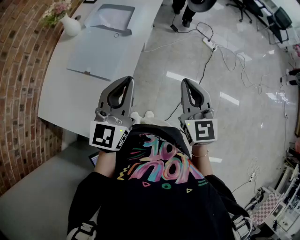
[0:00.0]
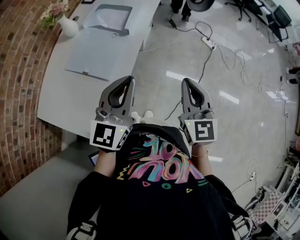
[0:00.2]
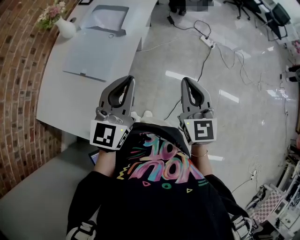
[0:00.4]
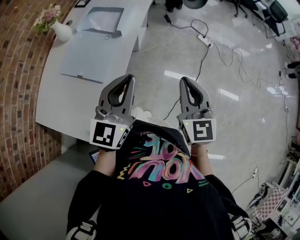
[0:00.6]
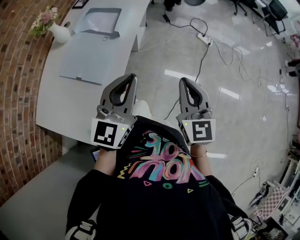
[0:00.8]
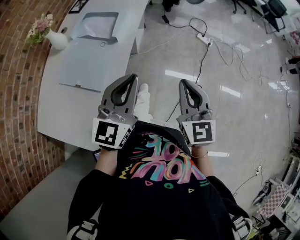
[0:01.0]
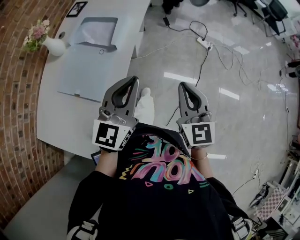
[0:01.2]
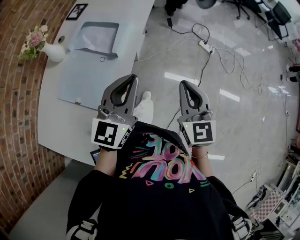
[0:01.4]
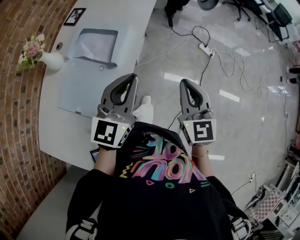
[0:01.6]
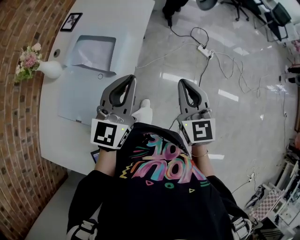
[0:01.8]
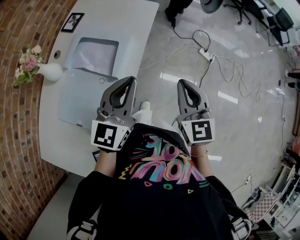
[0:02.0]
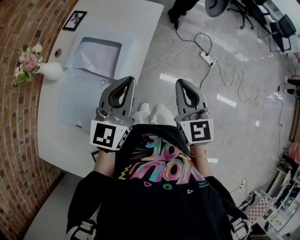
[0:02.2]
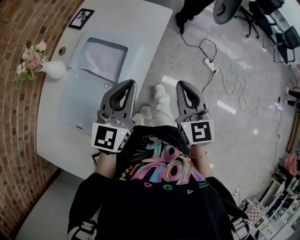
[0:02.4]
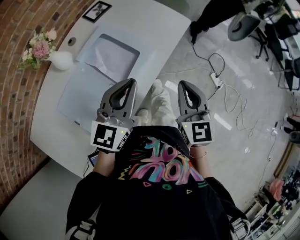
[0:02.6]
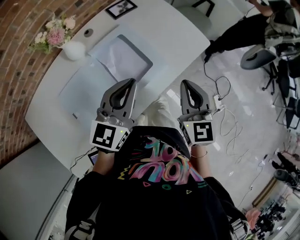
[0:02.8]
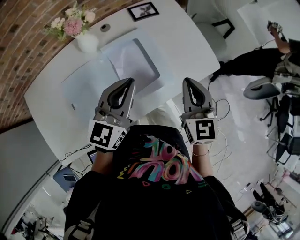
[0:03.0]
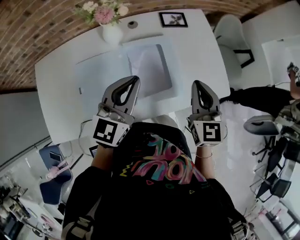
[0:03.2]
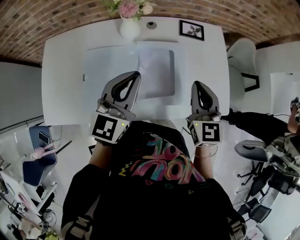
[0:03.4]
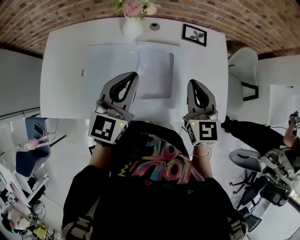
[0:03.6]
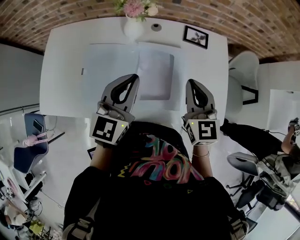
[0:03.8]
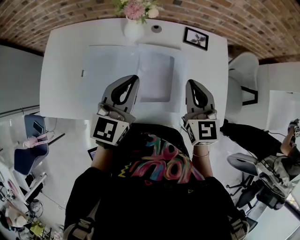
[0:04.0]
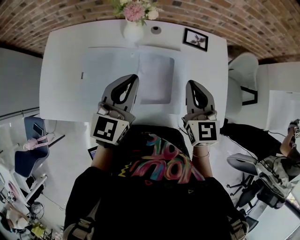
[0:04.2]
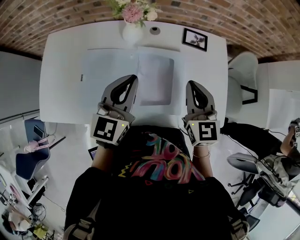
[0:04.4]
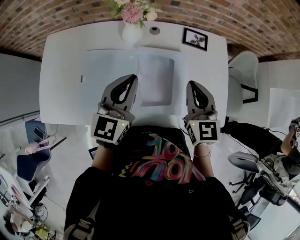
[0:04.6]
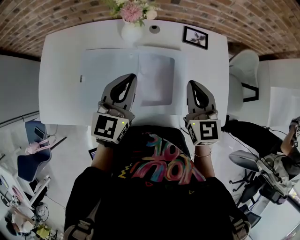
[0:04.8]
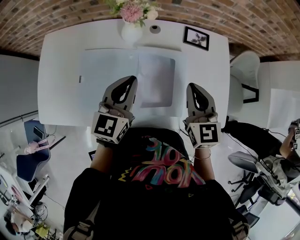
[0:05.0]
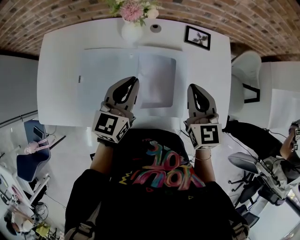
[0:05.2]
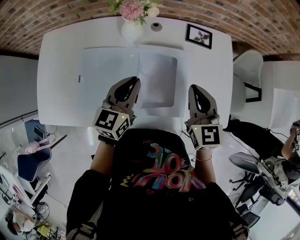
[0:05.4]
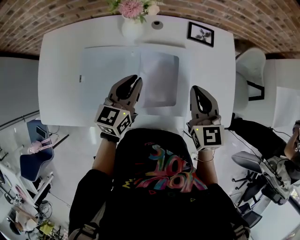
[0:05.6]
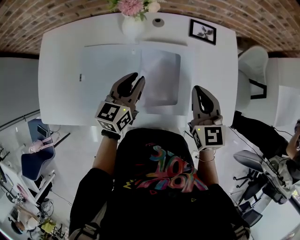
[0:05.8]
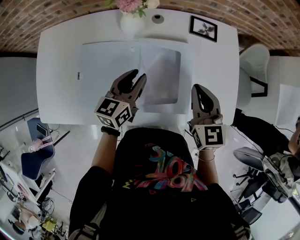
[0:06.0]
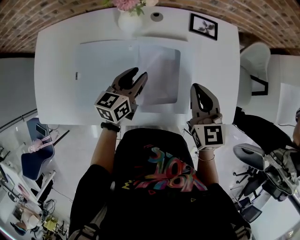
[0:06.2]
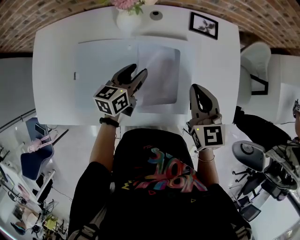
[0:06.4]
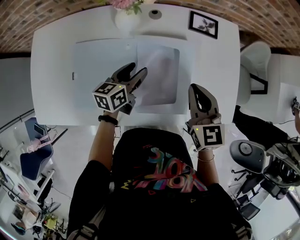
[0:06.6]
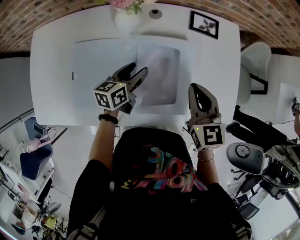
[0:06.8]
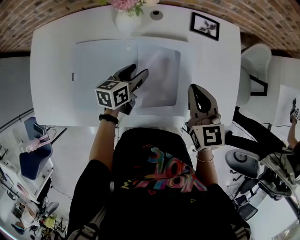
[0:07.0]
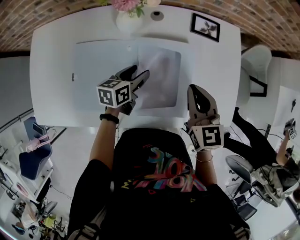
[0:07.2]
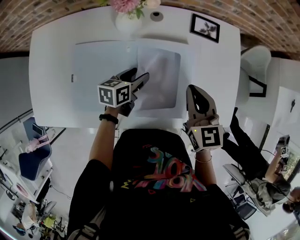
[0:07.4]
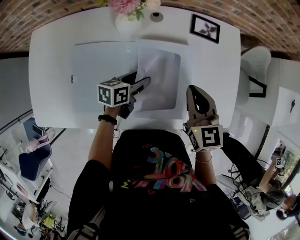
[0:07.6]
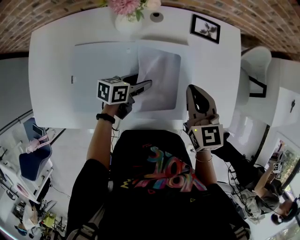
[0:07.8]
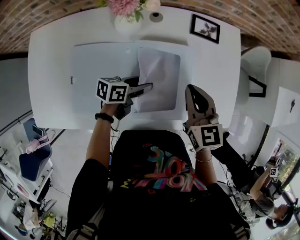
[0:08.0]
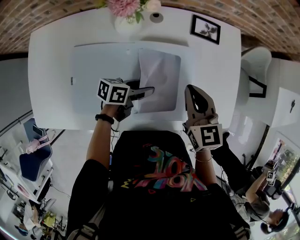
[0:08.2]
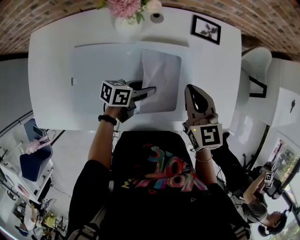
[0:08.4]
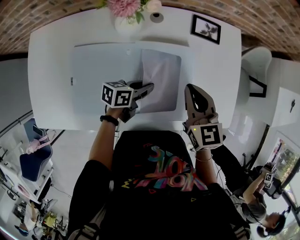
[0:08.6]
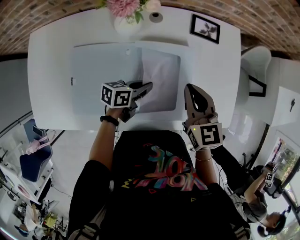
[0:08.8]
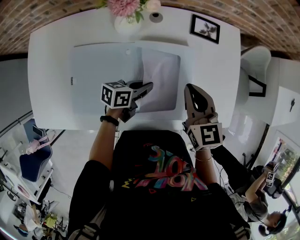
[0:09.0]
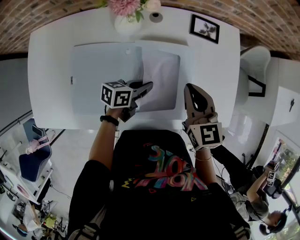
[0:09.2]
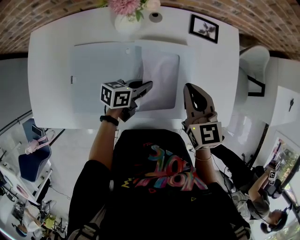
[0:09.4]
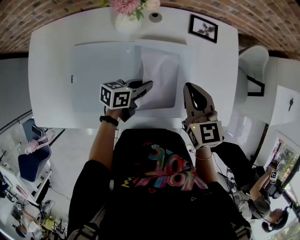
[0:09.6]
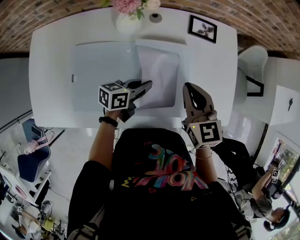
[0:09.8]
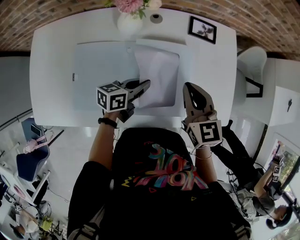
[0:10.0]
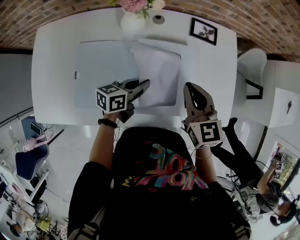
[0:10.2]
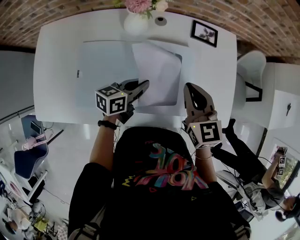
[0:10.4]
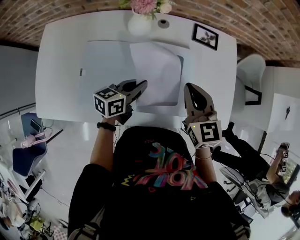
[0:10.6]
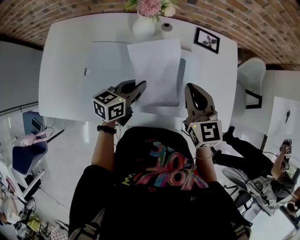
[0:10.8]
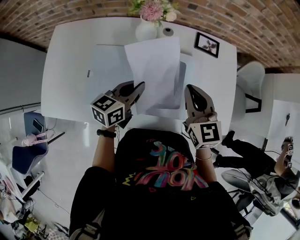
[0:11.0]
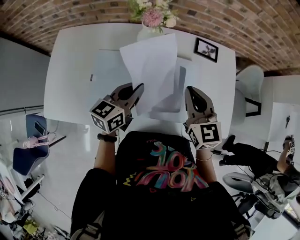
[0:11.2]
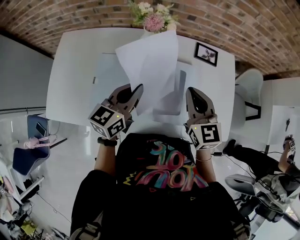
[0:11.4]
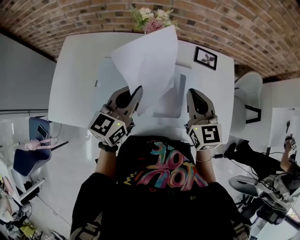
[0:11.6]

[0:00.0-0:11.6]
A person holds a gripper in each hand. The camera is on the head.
0:00.0 to 0:01.4: The grippers both shift forward by about 20 cm.
0:01.4 to 0:02.8: The right gripper ends up approximately 35 cm from where it was, and turns by approximately 30 degrees. The left gripper moves approximately 30 cm, and turns by some 30 degrees.
0:02.8 to 0:04.4: The right gripper shifts by roughly 20 cm, and rotates some 50 degrees; the left gripper moves approximately 10 cm, and changes its angle by roughly 50 degrees.
0:04.4 to 0:05.8: The right gripper is displaced downward by some 5 cm; the left gripper travels downward by roughly 15 cm, and turns by roughly 20 degrees.
0:05.8 to 0:07.2: The left gripper travels downward by approximately 10 cm, turns by about 30 degrees, and opens up.
0:07.2 to 0:08.8: The left gripper moves to the right, approximately 5 cm, turns by about 20 degrees, and closes up.
0:08.8 to 0:10.2: The left gripper travels upward by roughly 5 cm.
0:10.2 to 0:11.6: The right gripper travels upward by roughly 10 cm; the left gripper heads upward, covering some 20 cm, and rotates about 40 degrees.

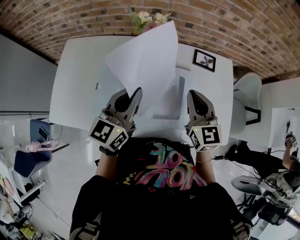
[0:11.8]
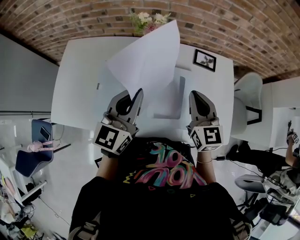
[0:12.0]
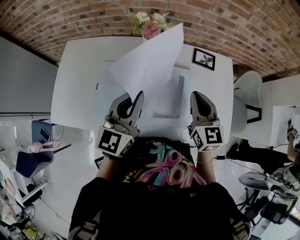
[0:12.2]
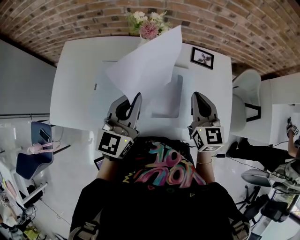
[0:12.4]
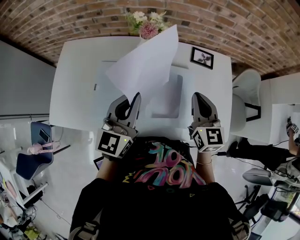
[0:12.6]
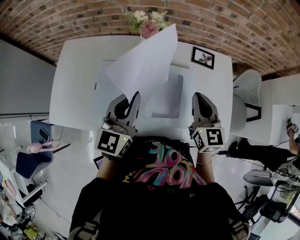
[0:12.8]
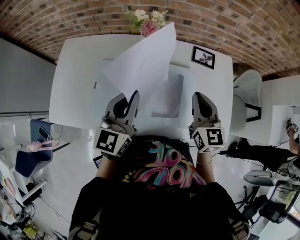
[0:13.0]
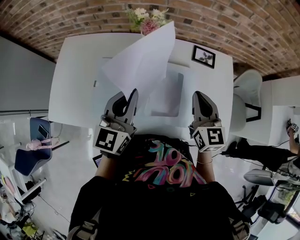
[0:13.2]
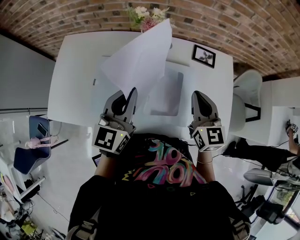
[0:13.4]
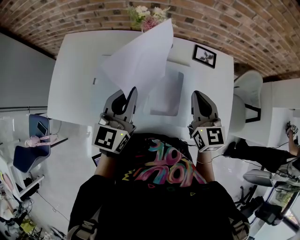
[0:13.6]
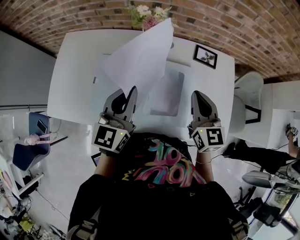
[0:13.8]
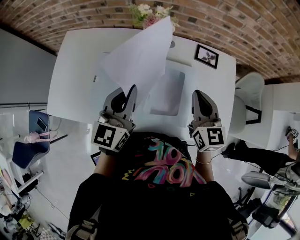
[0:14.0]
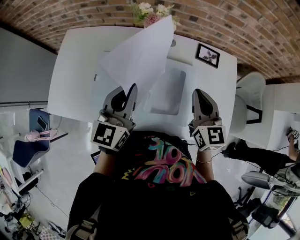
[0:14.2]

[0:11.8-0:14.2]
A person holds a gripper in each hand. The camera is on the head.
0:11.8 to 0:14.2: There are only small adjustments of the grippers.

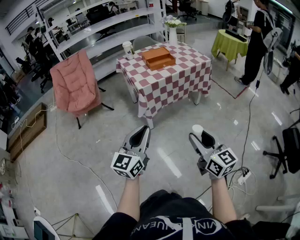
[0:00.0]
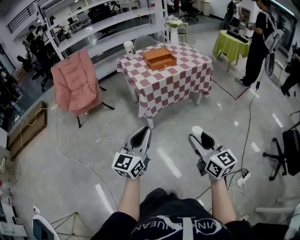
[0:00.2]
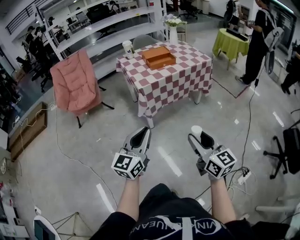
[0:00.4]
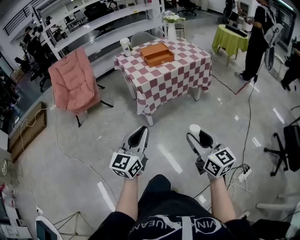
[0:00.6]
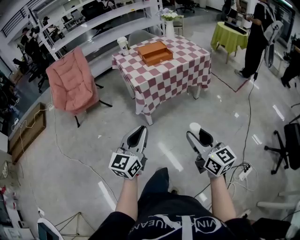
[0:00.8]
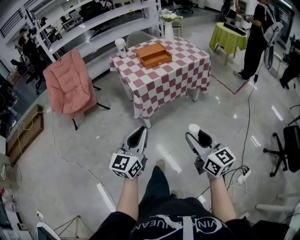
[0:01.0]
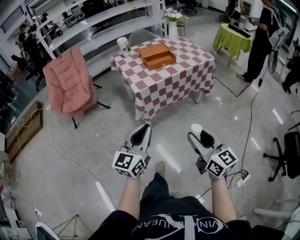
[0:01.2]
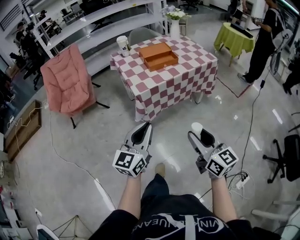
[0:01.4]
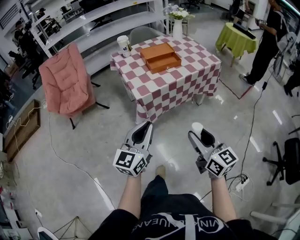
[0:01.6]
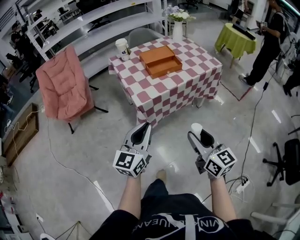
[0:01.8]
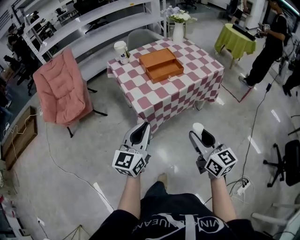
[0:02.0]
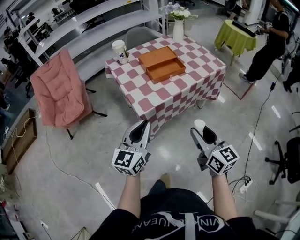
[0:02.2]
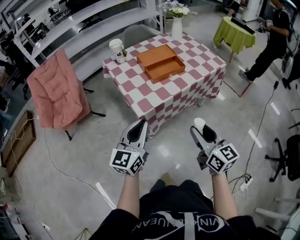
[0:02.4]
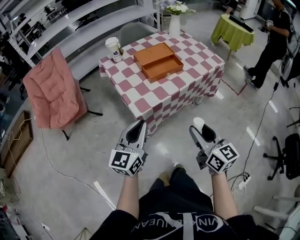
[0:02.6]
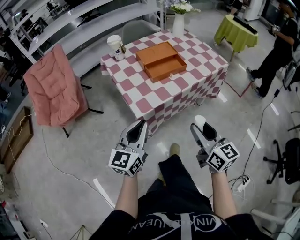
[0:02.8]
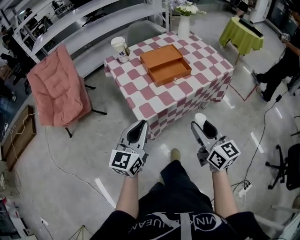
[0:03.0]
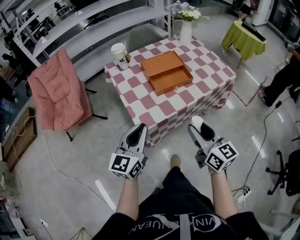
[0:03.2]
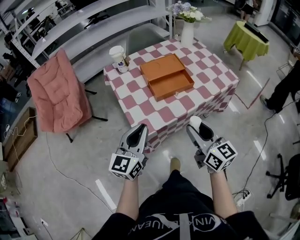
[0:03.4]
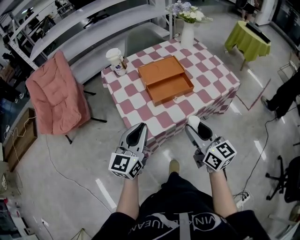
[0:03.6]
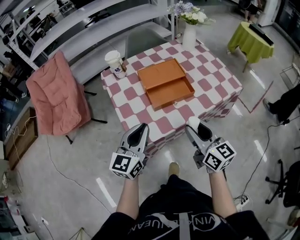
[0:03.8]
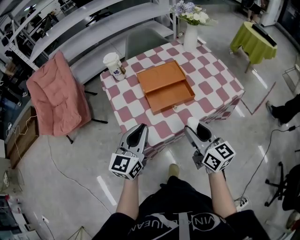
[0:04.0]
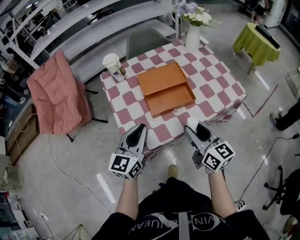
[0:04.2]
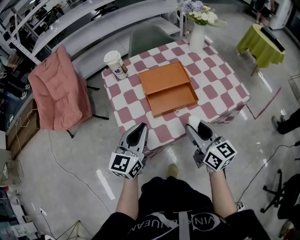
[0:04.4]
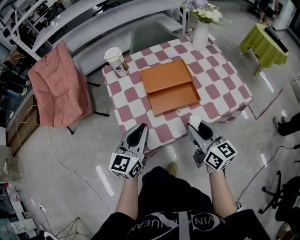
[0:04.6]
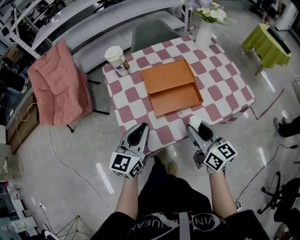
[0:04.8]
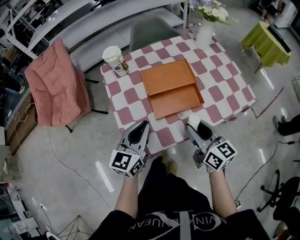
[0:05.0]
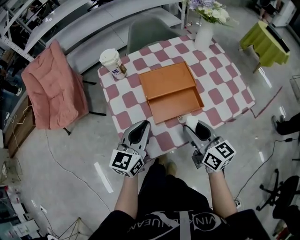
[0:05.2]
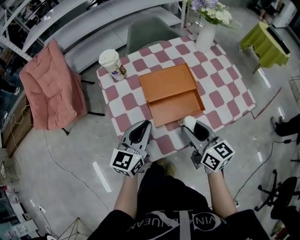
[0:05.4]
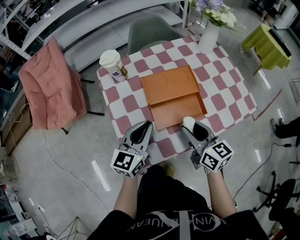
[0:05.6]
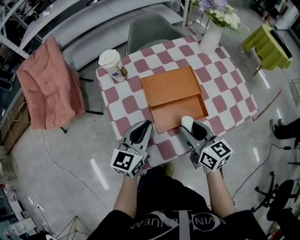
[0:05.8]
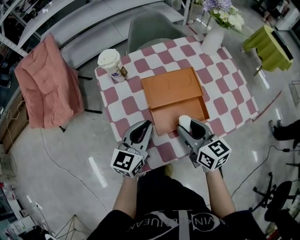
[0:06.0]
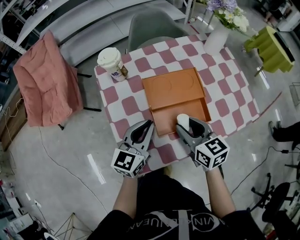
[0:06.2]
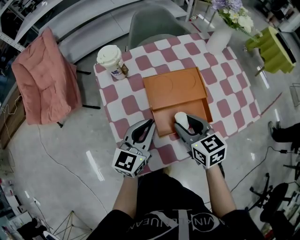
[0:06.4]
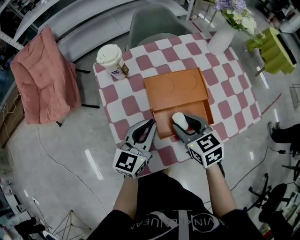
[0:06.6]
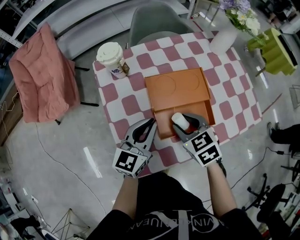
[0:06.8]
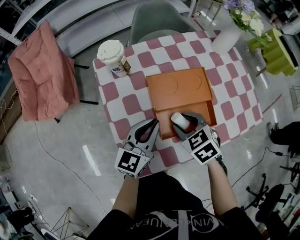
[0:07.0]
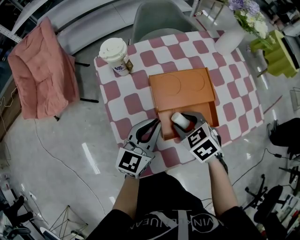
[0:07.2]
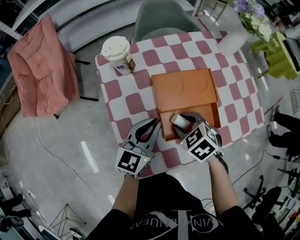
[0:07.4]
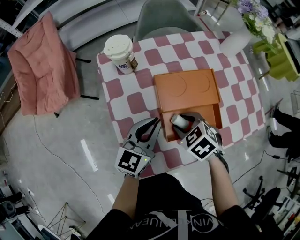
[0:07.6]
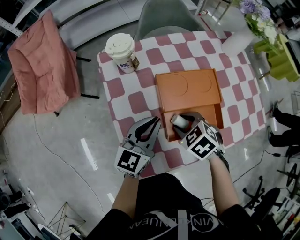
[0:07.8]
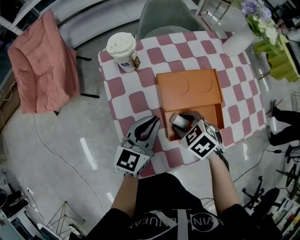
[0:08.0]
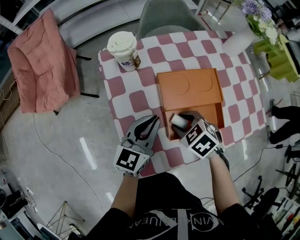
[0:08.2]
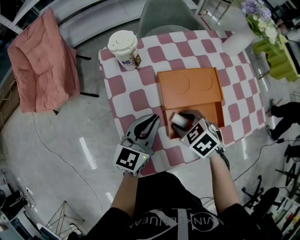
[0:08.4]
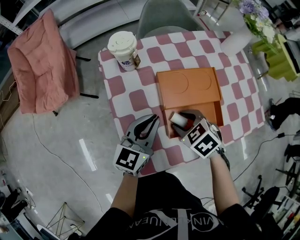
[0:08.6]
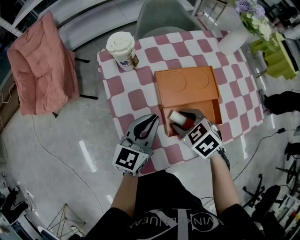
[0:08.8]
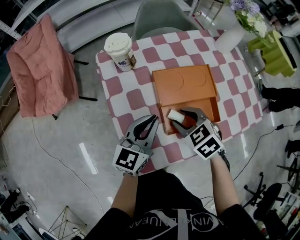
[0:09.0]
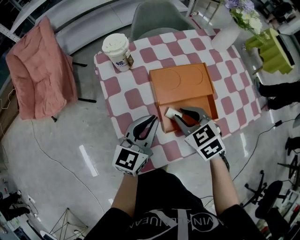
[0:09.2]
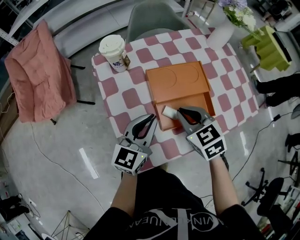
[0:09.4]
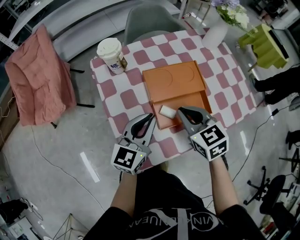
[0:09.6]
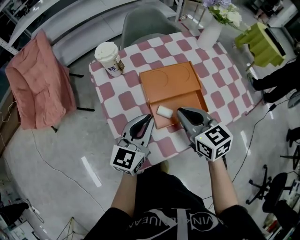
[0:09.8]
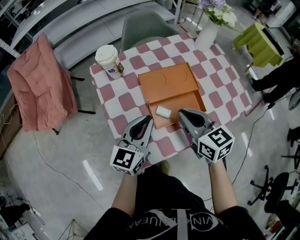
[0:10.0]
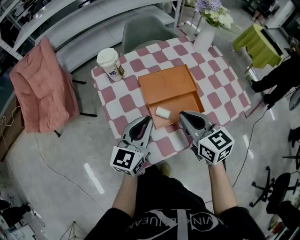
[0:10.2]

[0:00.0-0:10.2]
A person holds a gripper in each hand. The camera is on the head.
0:00.0 to 0:01.4: Both grippers travel together forward, about 15 cm.
0:01.4 to 0:03.0: Both grippers move forward, approximately 25 cm.
0:03.0 to 0:04.4: Both grippers travel together forward, about 20 cm.
0:04.4 to 0:05.8: The two grippers go approximately 10 cm forward.
0:05.8 to 0:07.2: The right gripper goes roughly 10 cm downward, forward and to the left, and points its fingers roughly 40 degrees further downward. The left gripper moves approximately 5 cm.
0:07.2 to 0:08.8: The grippers move only a little.
0:08.8 to 0:10.2: The left gripper is displaced upward by some 5 cm; the right gripper is displaced upward and to the right by roughly 15 cm, angles its fingers upward, by roughly 40 degrees, and closes up.
